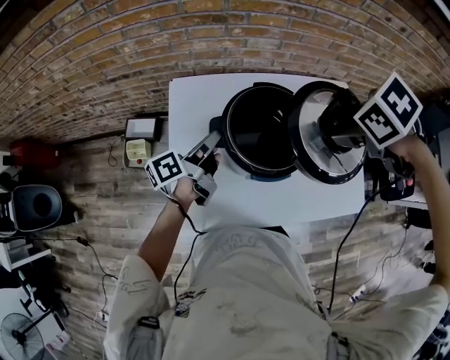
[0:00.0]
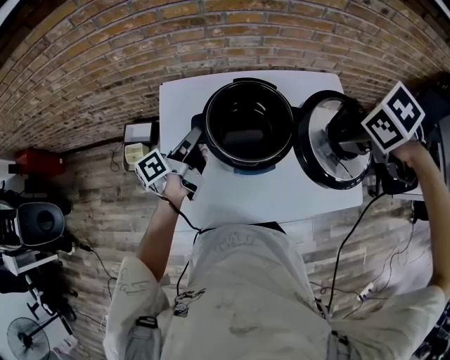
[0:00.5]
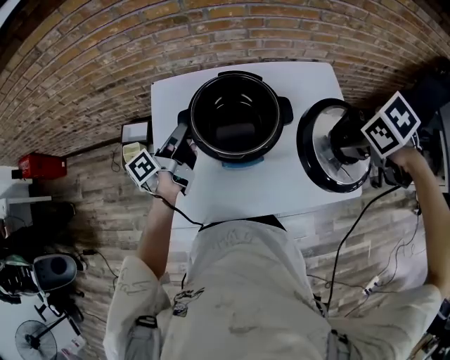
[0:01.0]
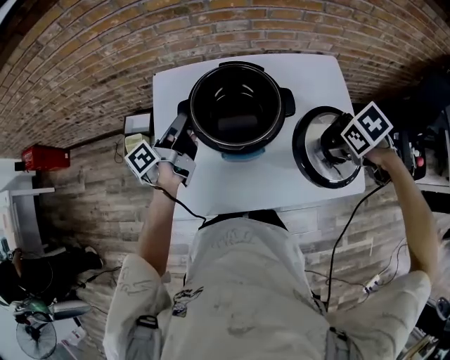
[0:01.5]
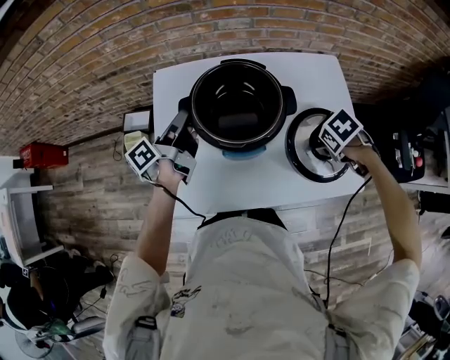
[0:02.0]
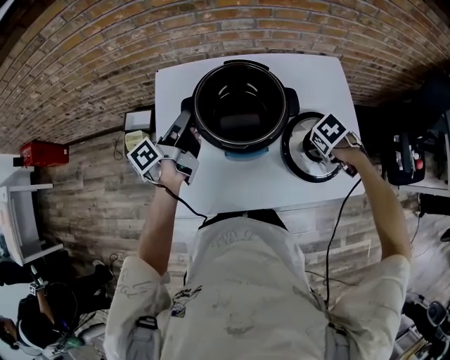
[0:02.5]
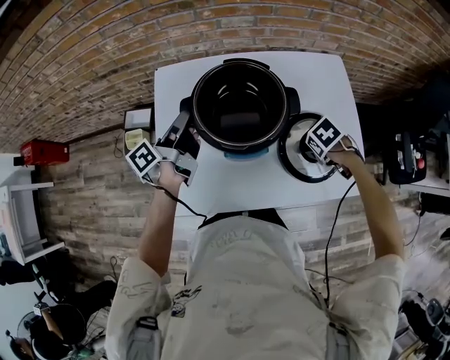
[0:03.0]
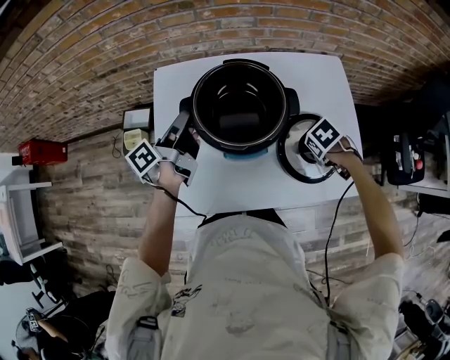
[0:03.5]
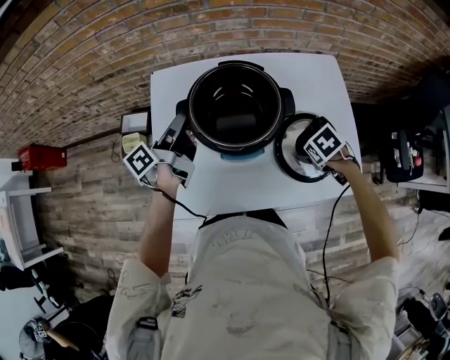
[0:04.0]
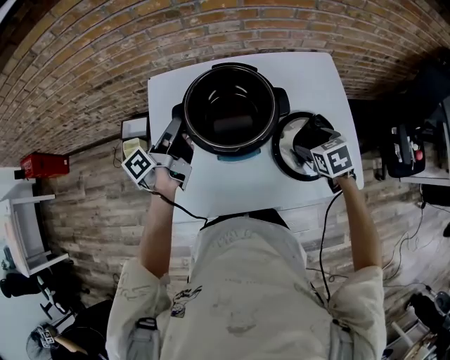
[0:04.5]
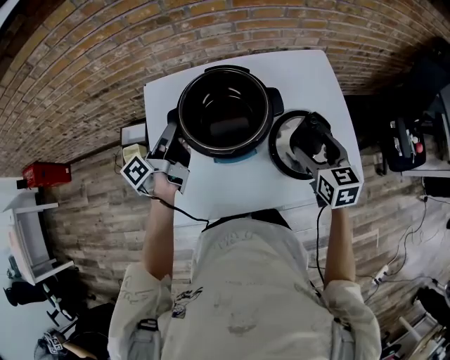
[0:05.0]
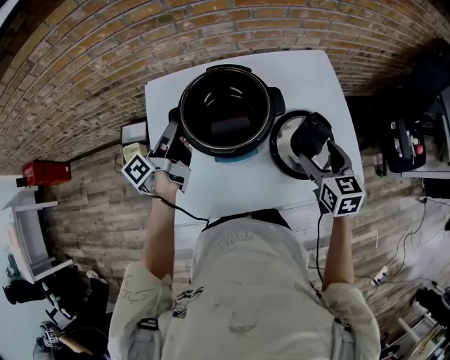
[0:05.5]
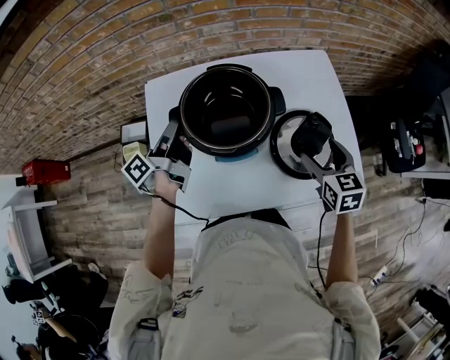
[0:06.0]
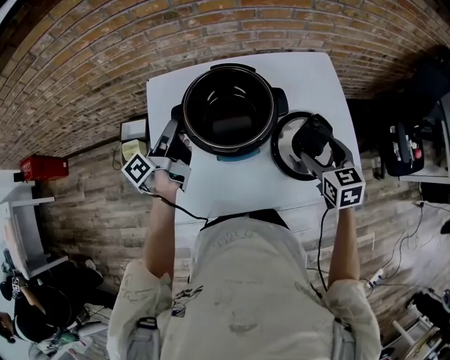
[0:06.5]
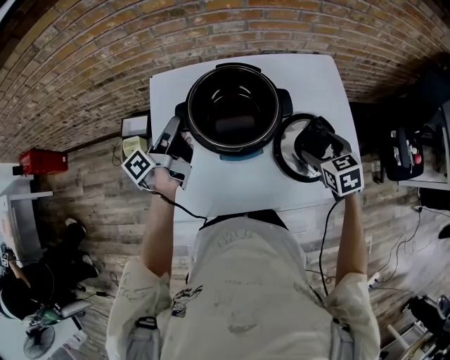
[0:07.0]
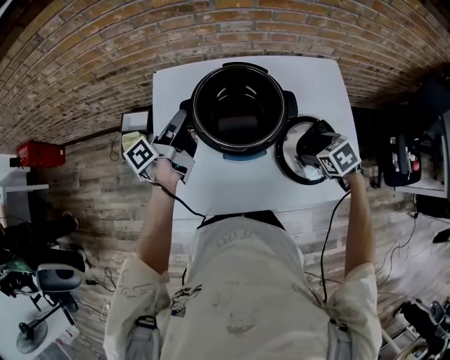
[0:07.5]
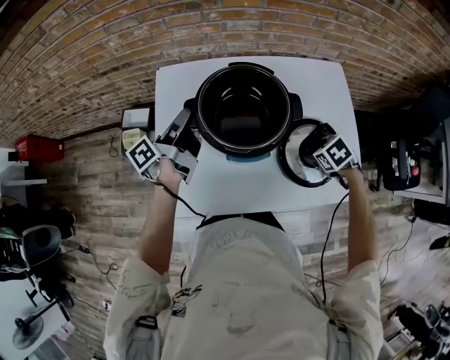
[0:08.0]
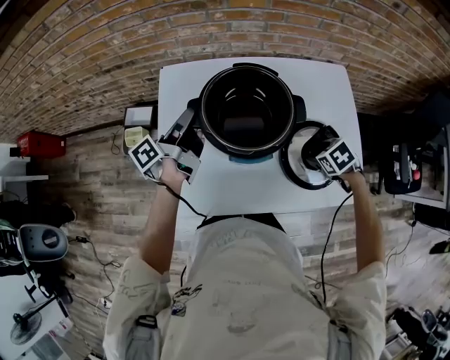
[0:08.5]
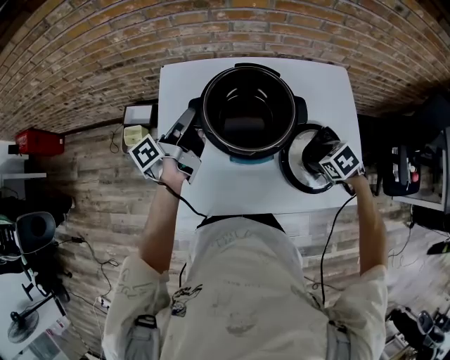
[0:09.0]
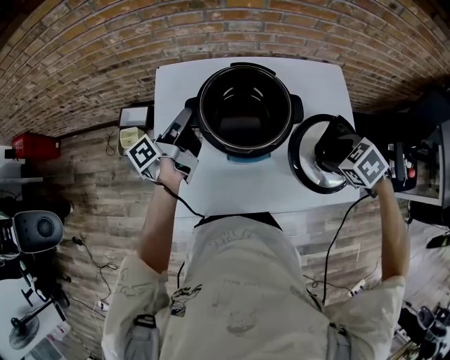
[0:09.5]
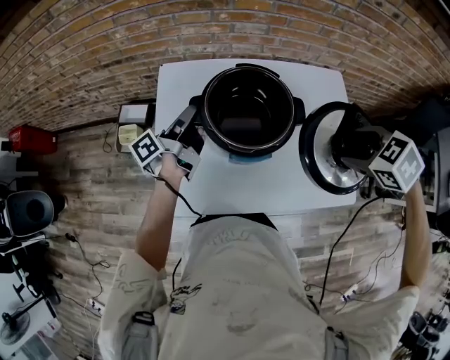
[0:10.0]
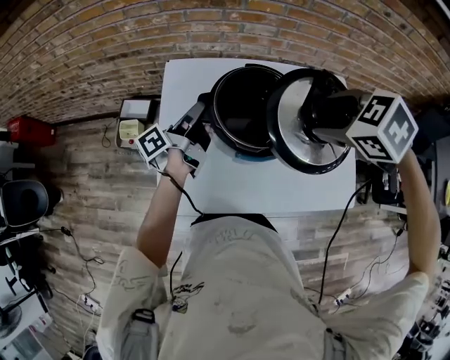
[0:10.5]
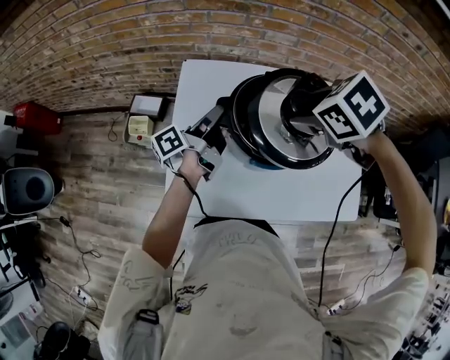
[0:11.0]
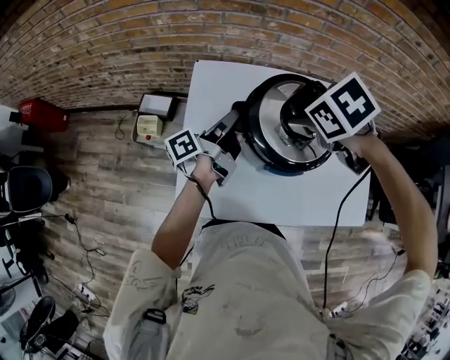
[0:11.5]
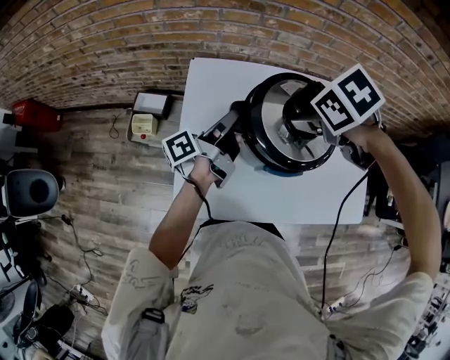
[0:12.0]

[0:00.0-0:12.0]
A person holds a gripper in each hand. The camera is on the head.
0:00.0 to 0:02.0: The right gripper travels downward by some 20 cm.
0:02.0 to 0:04.0: The right gripper travels downward by about 5 cm.
0:04.0 to 0:06.0: The right gripper moves upward, roughly 10 cm, and tips its fingers upward by roughly 50 degrees.
0:06.0 to 0:08.0: The right gripper is displaced downward by approximately 10 cm, and angles its fingers downward, by about 40 degrees.
0:08.0 to 0:10.0: The right gripper goes about 20 cm upward.
0:10.0 to 0:12.0: The right gripper ends up some 25 cm from where it was.

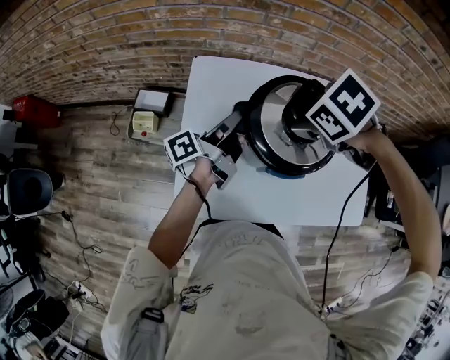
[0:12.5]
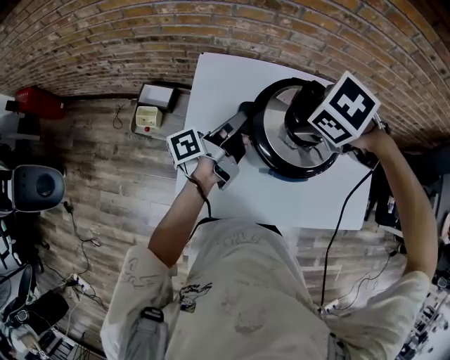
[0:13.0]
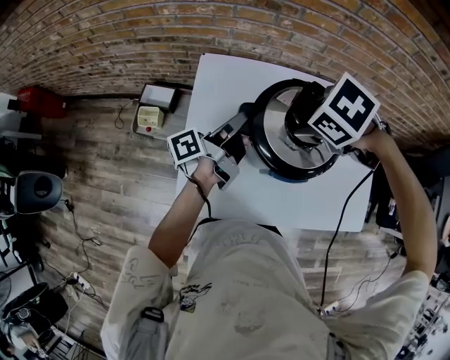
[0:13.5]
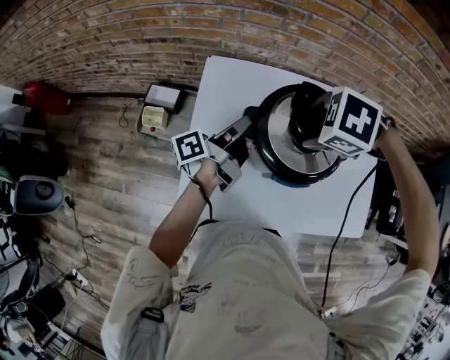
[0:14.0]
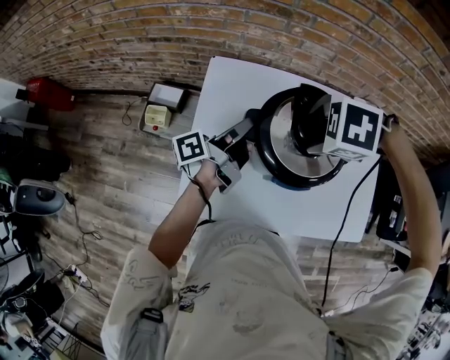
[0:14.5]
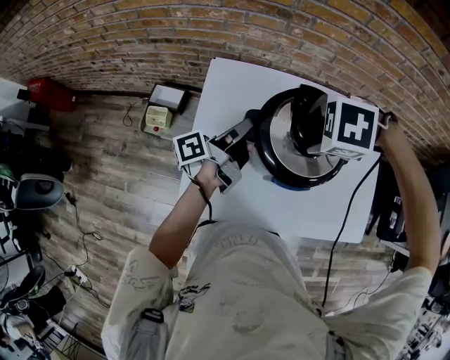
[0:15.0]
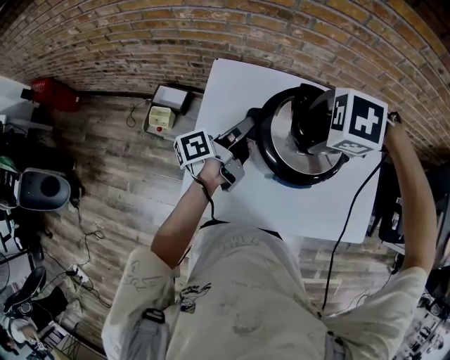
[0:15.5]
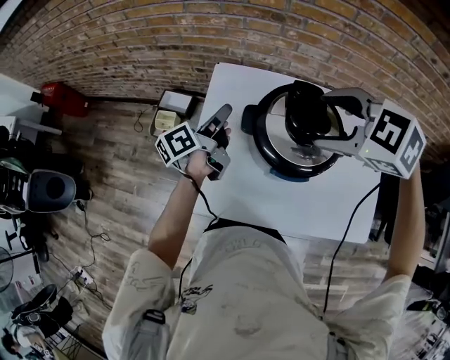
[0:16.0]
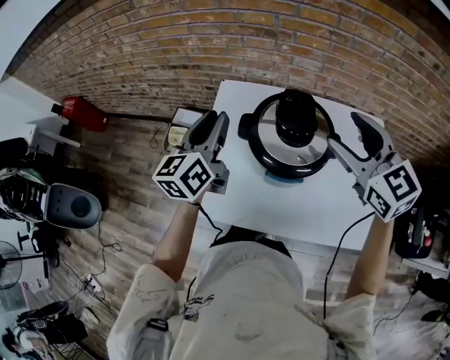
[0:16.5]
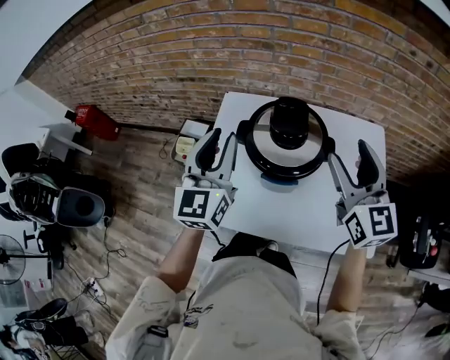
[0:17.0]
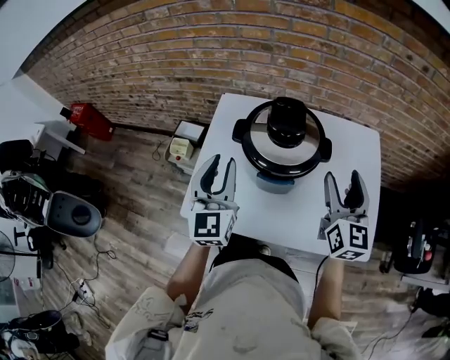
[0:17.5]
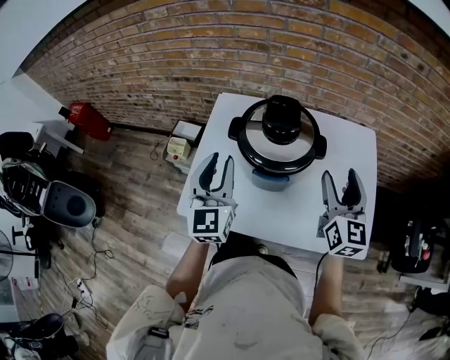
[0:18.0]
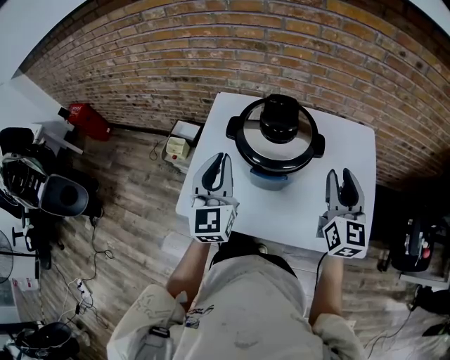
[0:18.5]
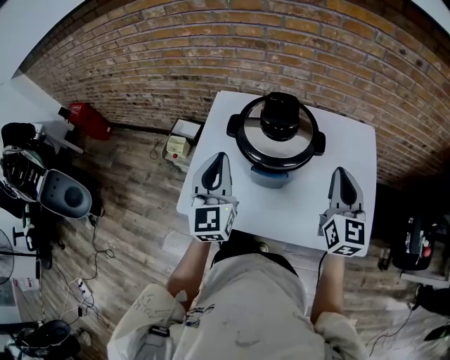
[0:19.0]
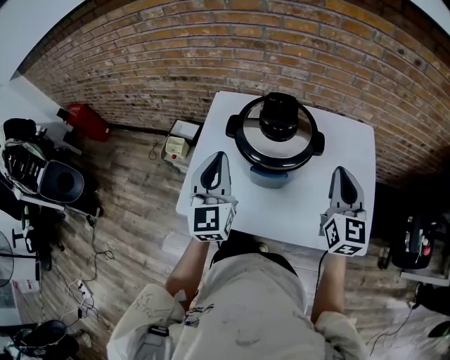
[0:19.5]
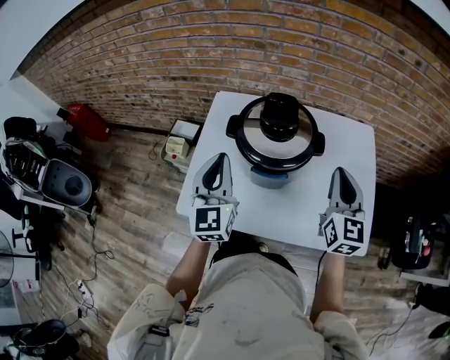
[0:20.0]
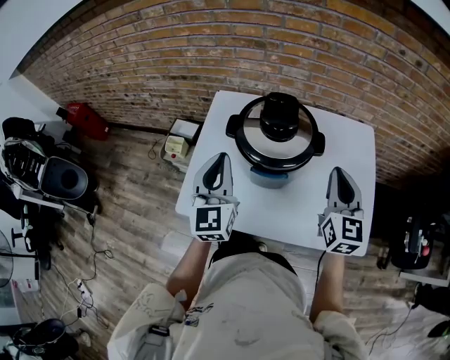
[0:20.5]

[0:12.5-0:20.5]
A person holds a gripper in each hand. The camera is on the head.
0:12.5 to 0:14.5: The right gripper swivels some 40 degrees.
0:14.5 to 0:16.5: The grippers both shift upward by some 15 cm. The right gripper angles its fingers upward, by about 70 degrees. Meanwhile the left gripper rolls clockwise, seen from behind, by some 60 degrees.
0:16.5 to 0:18.5: The left gripper is displaced backward and to the right by approximately 10 cm, swivels roughly 30 degrees, and closes. Meanwhile the right gripper heads downward, to the right and backward, covering about 15 cm, swivels about 40 degrees, and closes up.
0:18.5 to 0:20.5: The right gripper closes.

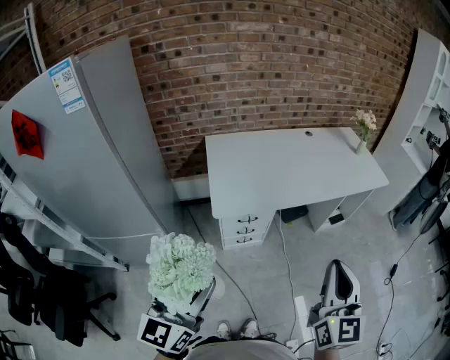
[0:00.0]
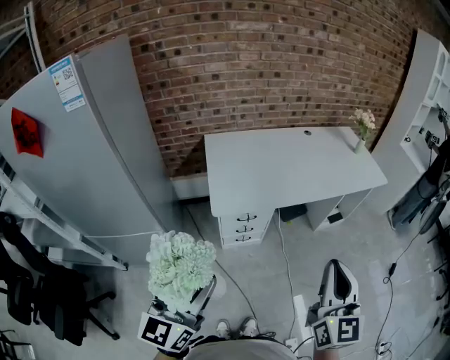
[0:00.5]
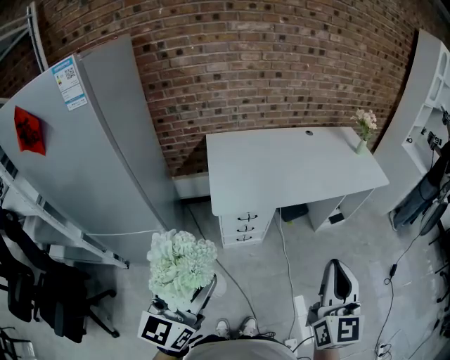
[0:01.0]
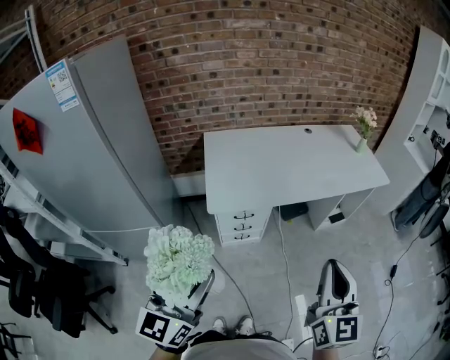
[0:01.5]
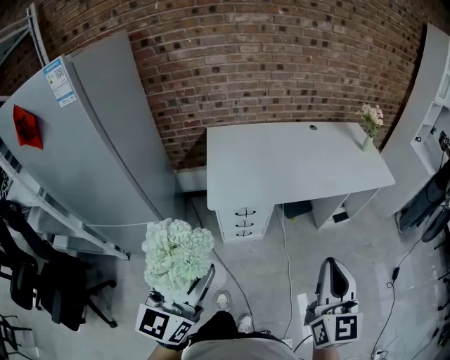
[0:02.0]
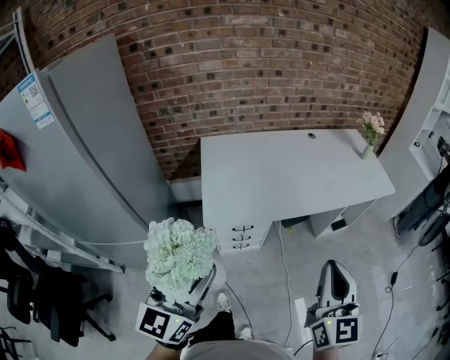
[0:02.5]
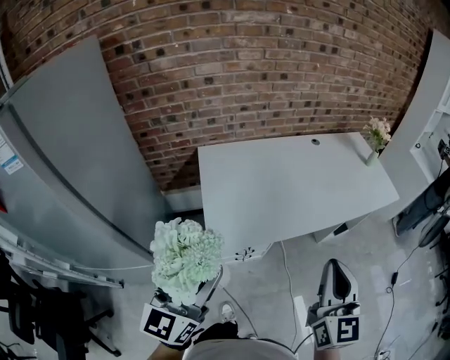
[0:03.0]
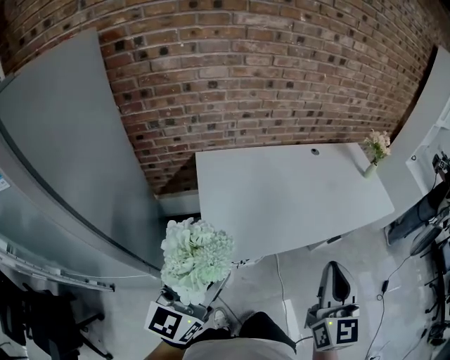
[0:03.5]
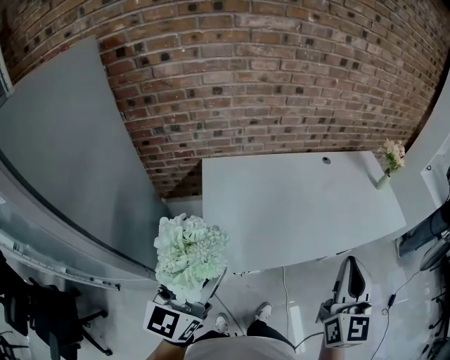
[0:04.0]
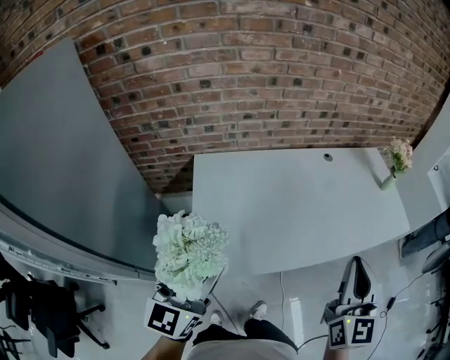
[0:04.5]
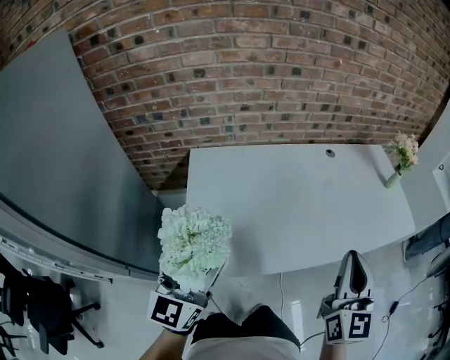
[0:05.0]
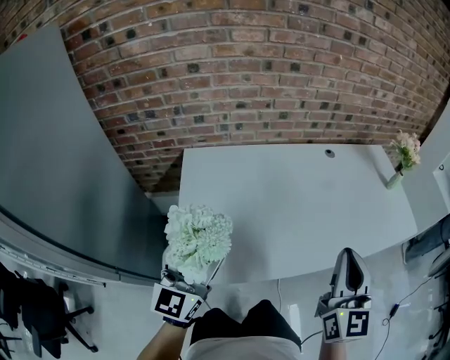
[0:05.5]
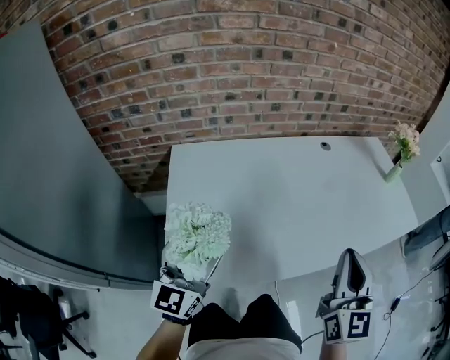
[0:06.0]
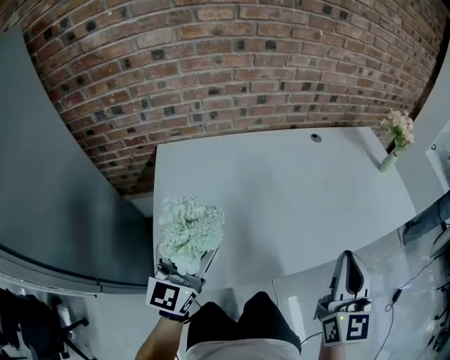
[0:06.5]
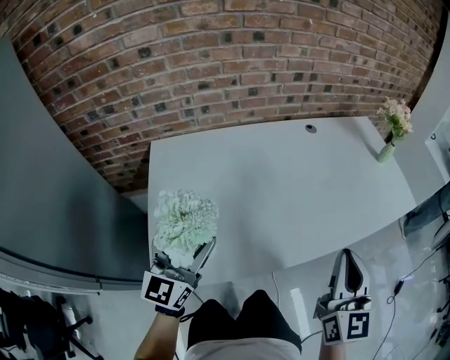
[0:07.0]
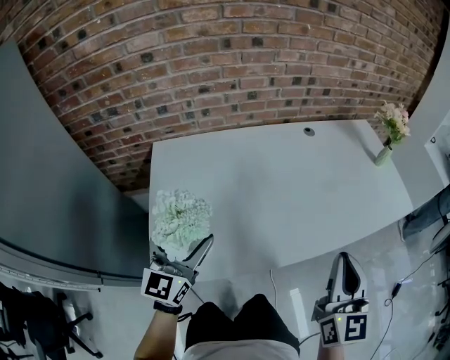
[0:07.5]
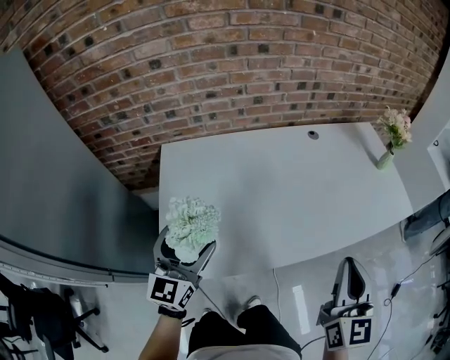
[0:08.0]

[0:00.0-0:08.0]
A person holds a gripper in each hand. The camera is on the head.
0:00.0 to 0:02.0: The right gripper ends up roughly 5 cm from where it was. The left gripper moves to the right, approximately 5 cm.
0:02.0 to 0:04.0: The grippers both shift forward by approximately 30 cm.
0:04.0 to 0:06.0: The left gripper heads downward and forward, covering approximately 25 cm, while the right gripper travels downward, forward and to the right by about 20 cm.
0:06.0 to 0:08.0: The right gripper heads to the right, covering about 5 cm.
